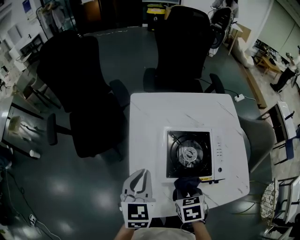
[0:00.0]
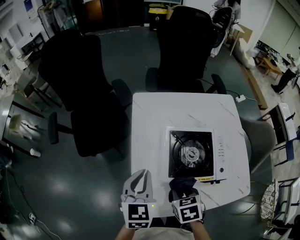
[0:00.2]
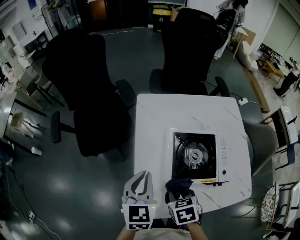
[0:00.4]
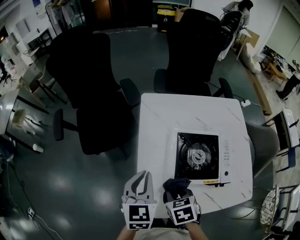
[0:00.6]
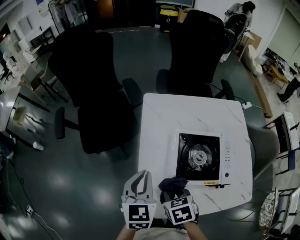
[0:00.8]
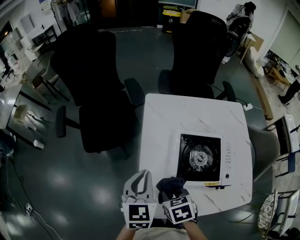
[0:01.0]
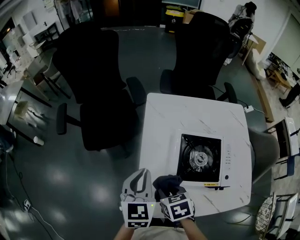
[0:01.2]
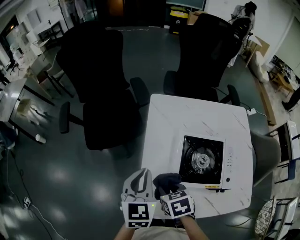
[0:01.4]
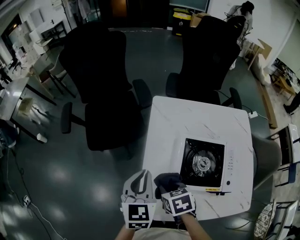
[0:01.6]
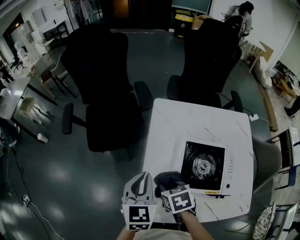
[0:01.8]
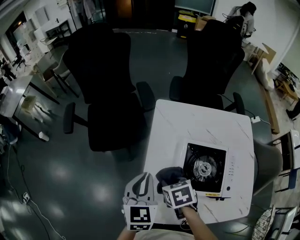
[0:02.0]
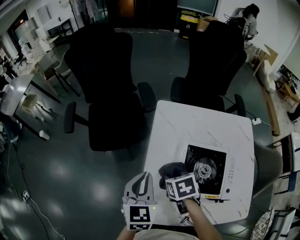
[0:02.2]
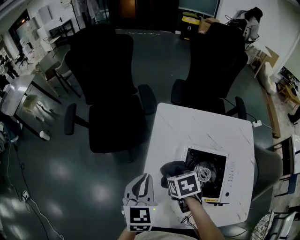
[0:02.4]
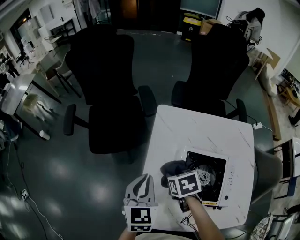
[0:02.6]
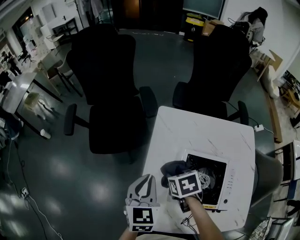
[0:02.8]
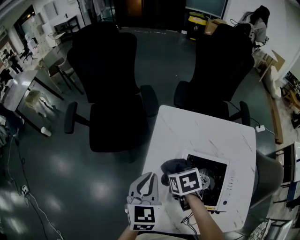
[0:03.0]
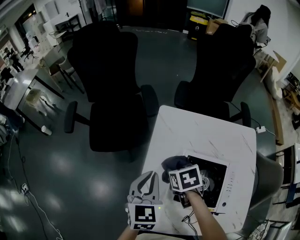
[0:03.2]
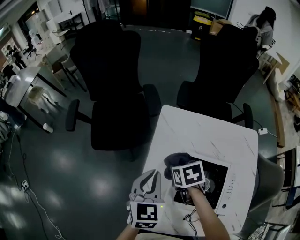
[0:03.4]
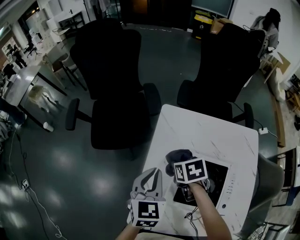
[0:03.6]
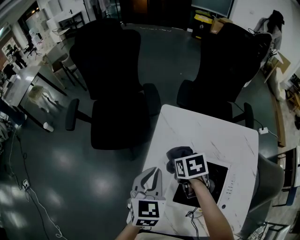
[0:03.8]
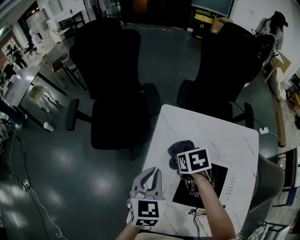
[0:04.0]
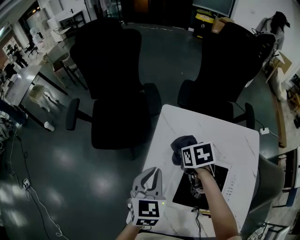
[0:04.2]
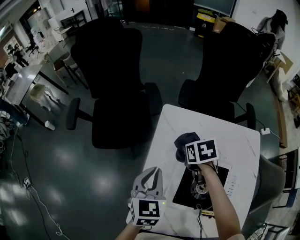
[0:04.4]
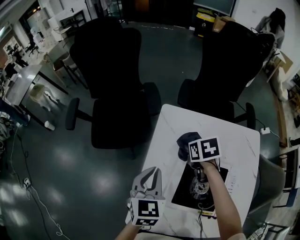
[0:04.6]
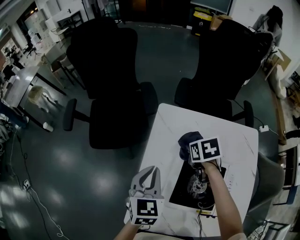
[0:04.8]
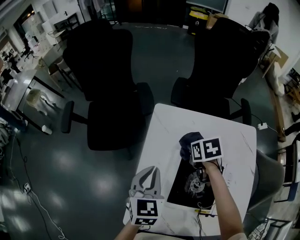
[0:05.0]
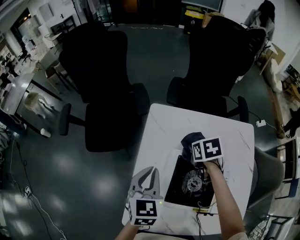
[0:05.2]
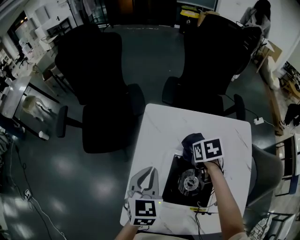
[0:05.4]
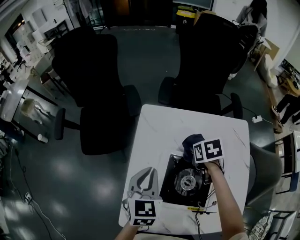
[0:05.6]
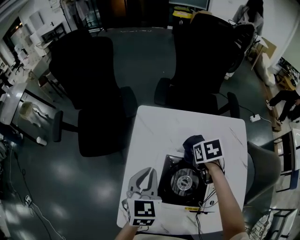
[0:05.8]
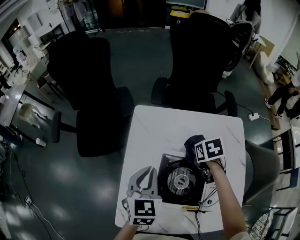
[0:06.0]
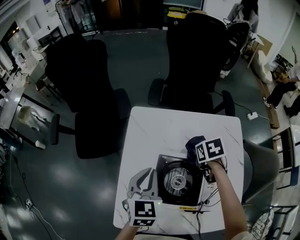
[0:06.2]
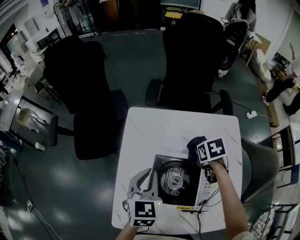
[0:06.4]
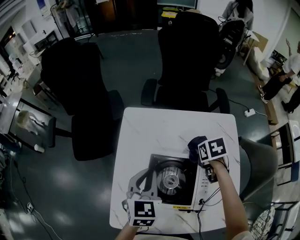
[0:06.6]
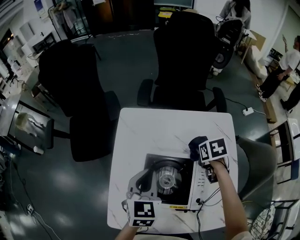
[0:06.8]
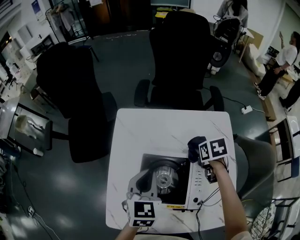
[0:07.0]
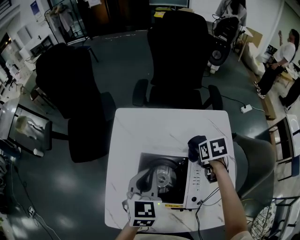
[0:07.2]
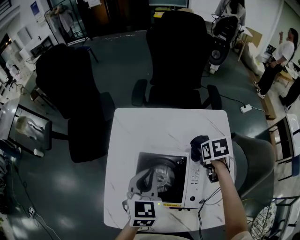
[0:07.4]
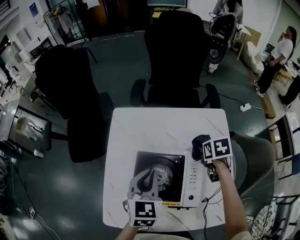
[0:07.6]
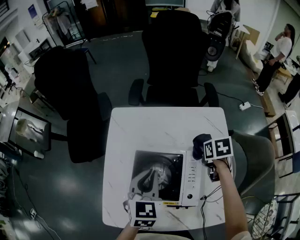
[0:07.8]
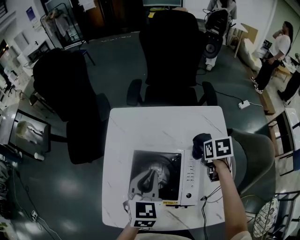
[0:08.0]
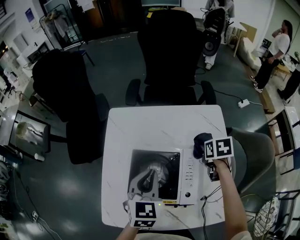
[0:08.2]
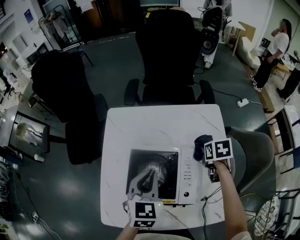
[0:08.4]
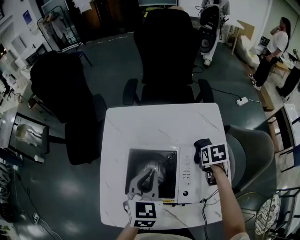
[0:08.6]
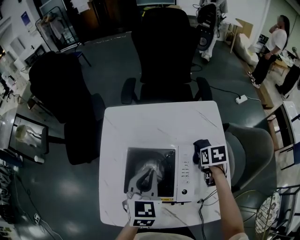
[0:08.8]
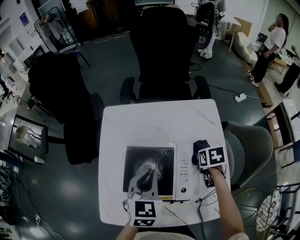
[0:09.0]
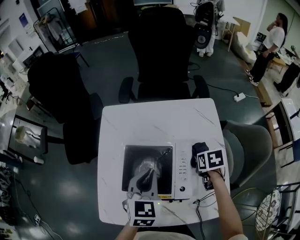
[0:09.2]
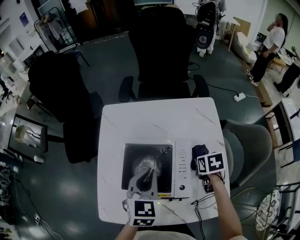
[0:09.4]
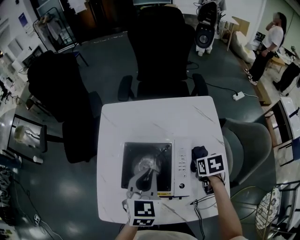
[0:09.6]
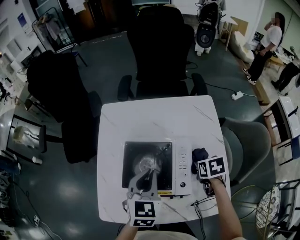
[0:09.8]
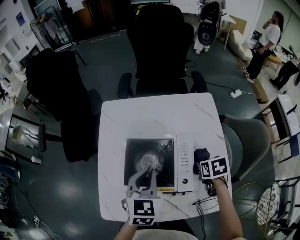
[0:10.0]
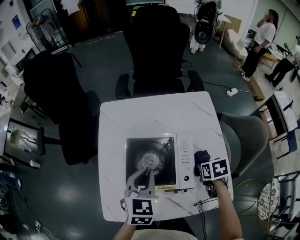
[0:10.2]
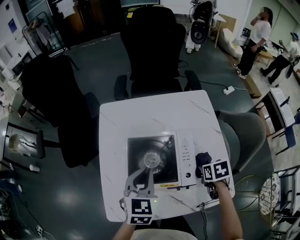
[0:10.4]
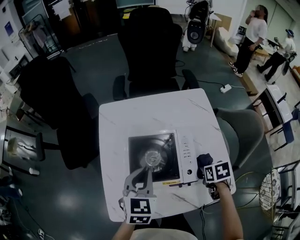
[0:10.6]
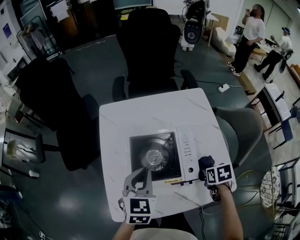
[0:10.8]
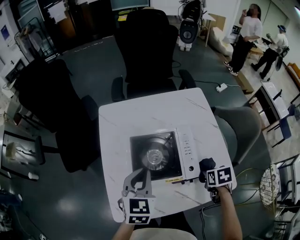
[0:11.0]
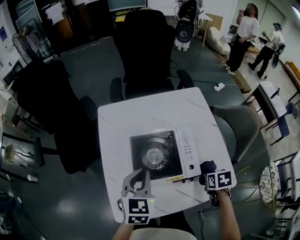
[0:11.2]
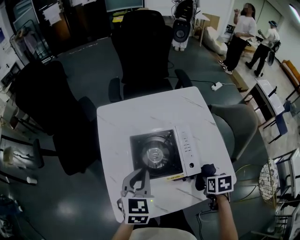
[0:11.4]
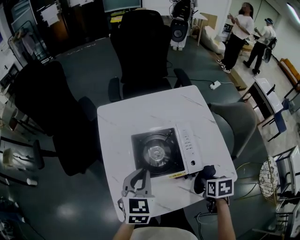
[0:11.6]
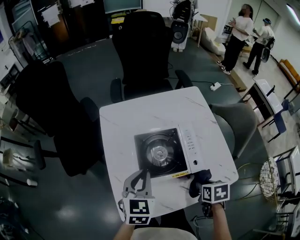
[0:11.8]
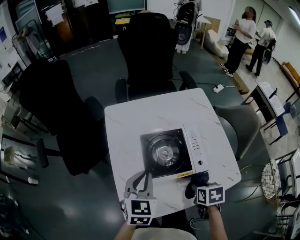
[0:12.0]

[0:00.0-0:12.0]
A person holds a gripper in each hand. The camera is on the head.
0:00.0 to 0:01.6: The right gripper goes about 15 cm to the left and forward, while the left gripper is displaced to the left by approximately 5 cm.
0:01.6 to 0:03.0: The left gripper shifts by some 5 cm, while the right gripper is displaced forward and to the right by some 15 cm.
0:03.0 to 0:04.4: The right gripper shifts about 15 cm forward and to the right.
0:04.4 to 0:06.0: The right gripper moves to the right, some 15 cm. Meanwhile the left gripper heads to the right, covering about 10 cm.
0:06.0 to 0:07.6: The two grippers go about 10 cm to the right.
0:07.6 to 0:09.0: The left gripper shifts by roughly 5 cm. Meanwhile the right gripper goes roughly 5 cm backward.
0:09.0 to 0:10.4: The right gripper travels backward by some 15 cm. Meanwhile the left gripper moves roughly 5 cm.
0:10.4 to 0:12.0: The left gripper moves to the left, about 10 cm. Meanwhile the right gripper moves backward and to the left, some 15 cm.

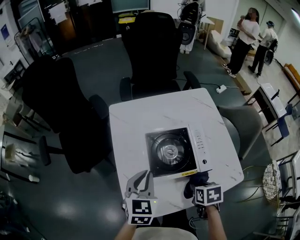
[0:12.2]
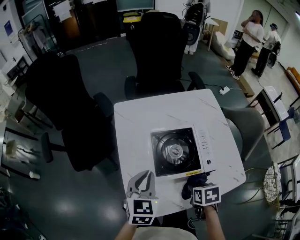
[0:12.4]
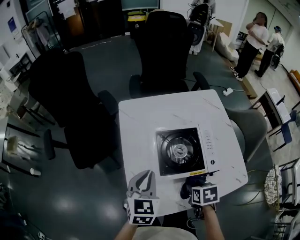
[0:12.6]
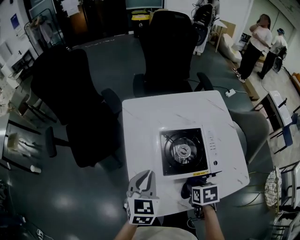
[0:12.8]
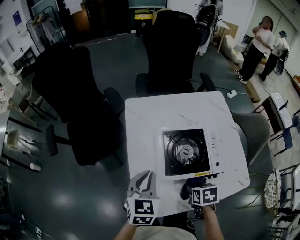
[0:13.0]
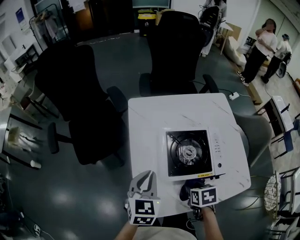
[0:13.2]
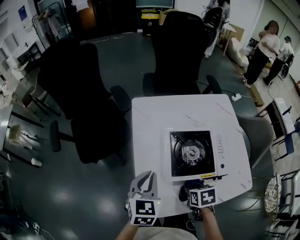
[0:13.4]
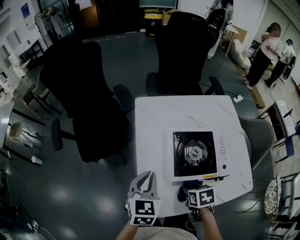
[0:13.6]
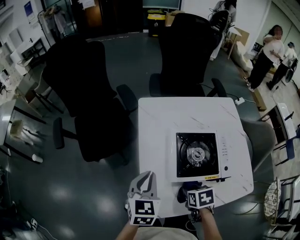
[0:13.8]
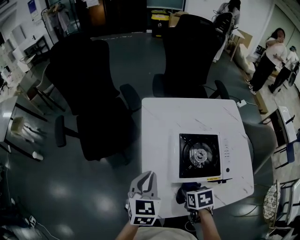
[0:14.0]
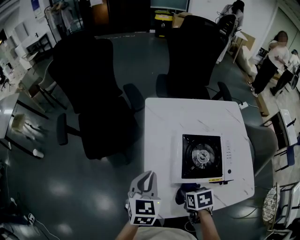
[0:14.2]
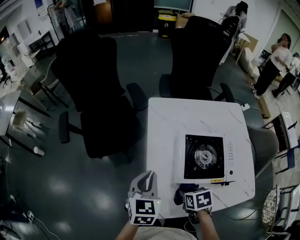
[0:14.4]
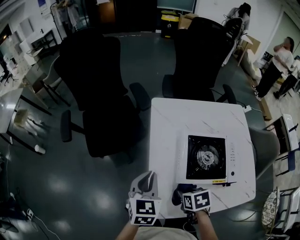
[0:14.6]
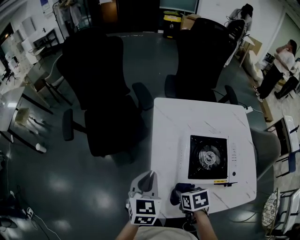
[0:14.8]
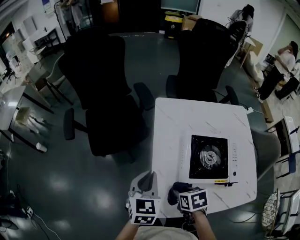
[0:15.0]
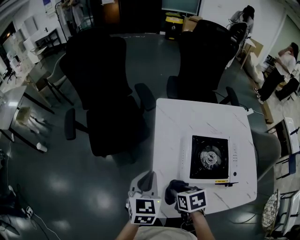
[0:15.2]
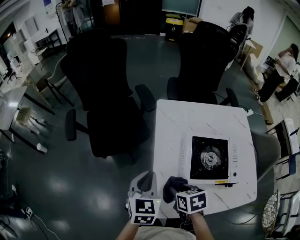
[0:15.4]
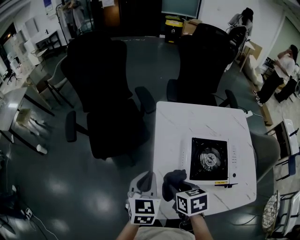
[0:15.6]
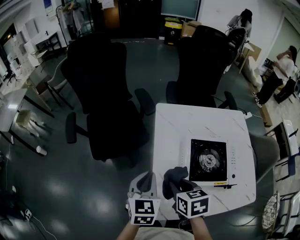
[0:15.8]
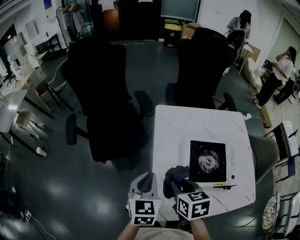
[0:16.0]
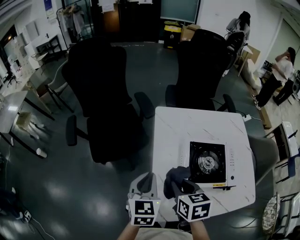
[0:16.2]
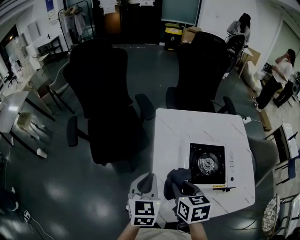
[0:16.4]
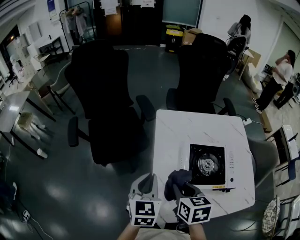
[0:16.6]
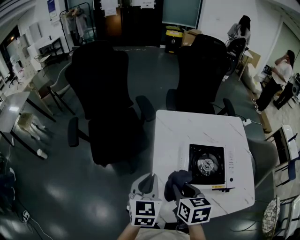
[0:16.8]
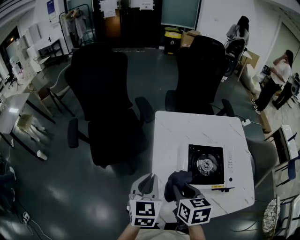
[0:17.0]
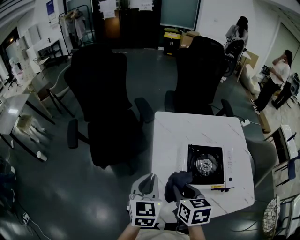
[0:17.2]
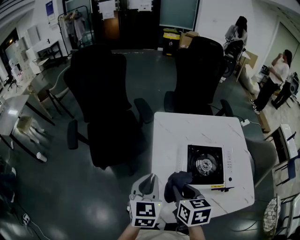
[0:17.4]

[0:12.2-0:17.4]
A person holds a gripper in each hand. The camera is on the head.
0:12.2 to 0:14.0: Both grippers move to the left, approximately 15 cm.
0:14.0 to 0:15.6: The left gripper moves to the left, roughly 5 cm. Meanwhile the right gripper travels to the left, upward and forward by roughly 15 cm.
0:15.6 to 0:17.4: The right gripper travels upward by approximately 5 cm.

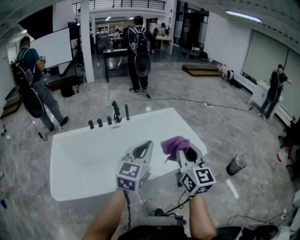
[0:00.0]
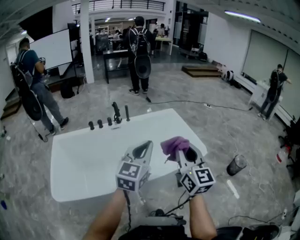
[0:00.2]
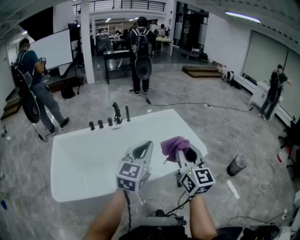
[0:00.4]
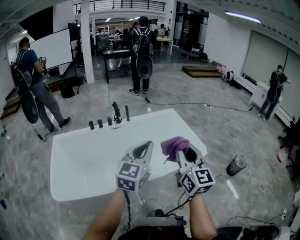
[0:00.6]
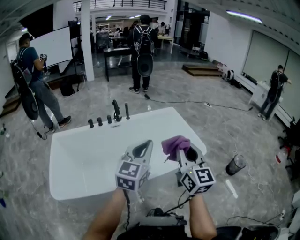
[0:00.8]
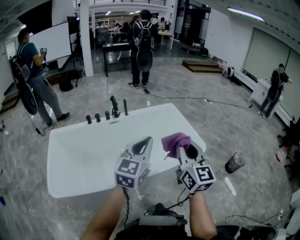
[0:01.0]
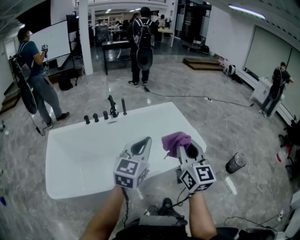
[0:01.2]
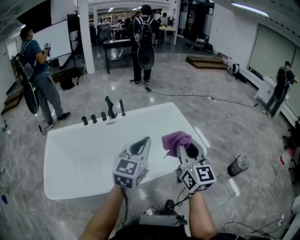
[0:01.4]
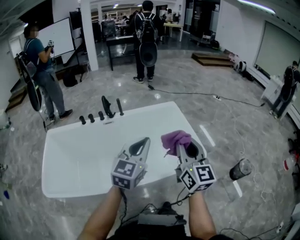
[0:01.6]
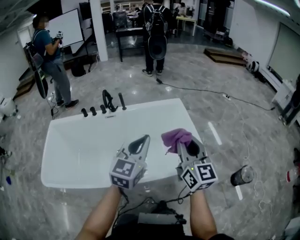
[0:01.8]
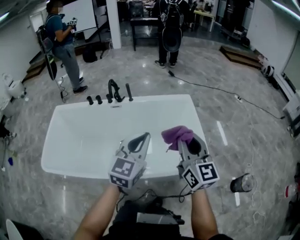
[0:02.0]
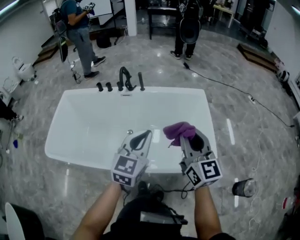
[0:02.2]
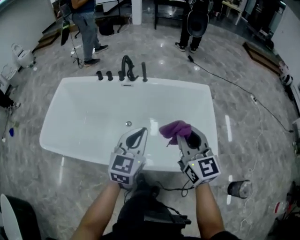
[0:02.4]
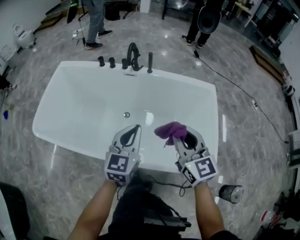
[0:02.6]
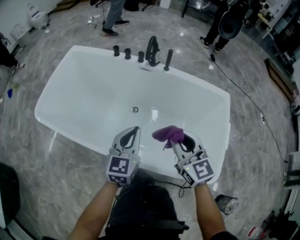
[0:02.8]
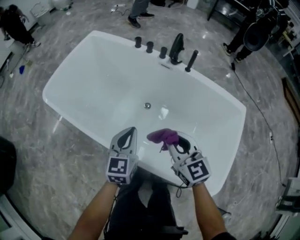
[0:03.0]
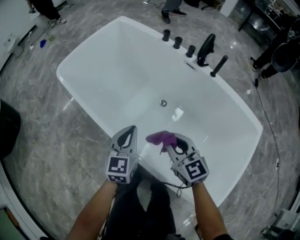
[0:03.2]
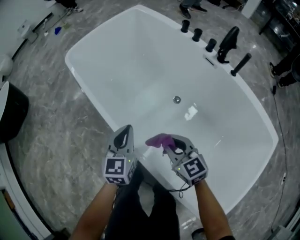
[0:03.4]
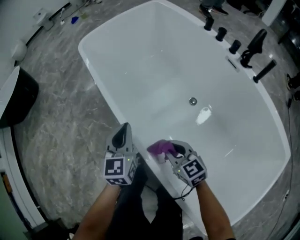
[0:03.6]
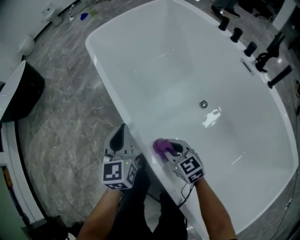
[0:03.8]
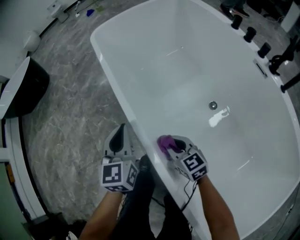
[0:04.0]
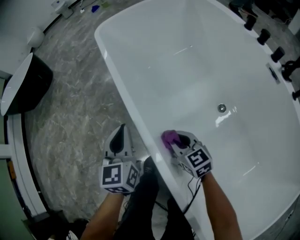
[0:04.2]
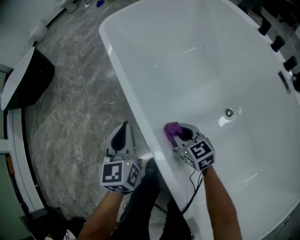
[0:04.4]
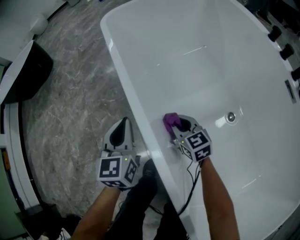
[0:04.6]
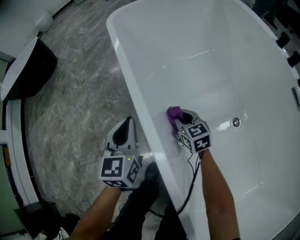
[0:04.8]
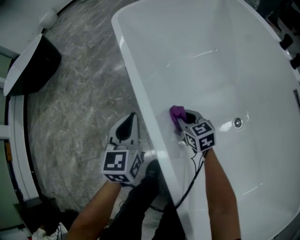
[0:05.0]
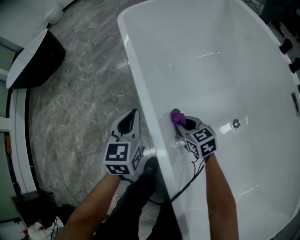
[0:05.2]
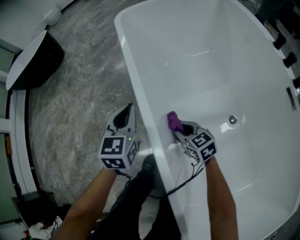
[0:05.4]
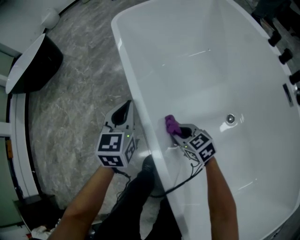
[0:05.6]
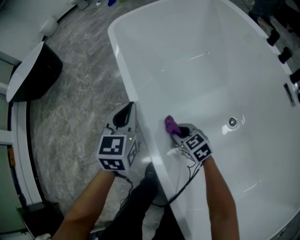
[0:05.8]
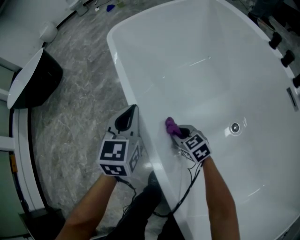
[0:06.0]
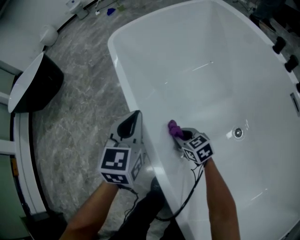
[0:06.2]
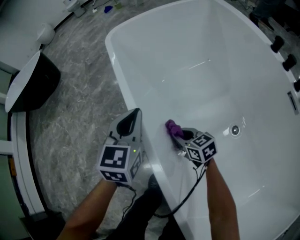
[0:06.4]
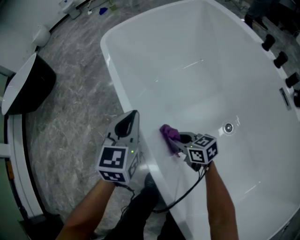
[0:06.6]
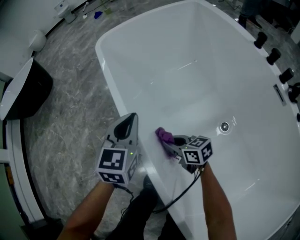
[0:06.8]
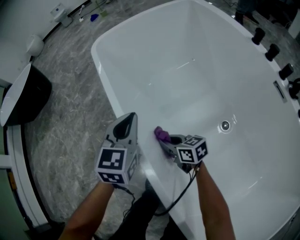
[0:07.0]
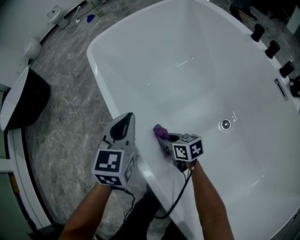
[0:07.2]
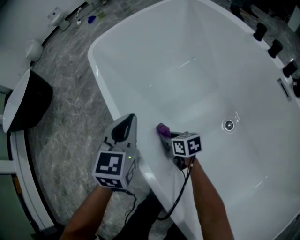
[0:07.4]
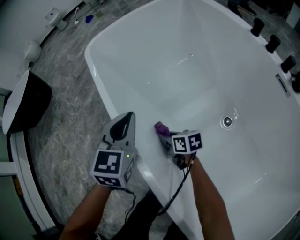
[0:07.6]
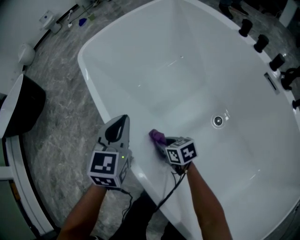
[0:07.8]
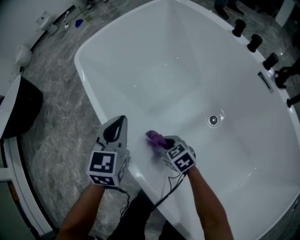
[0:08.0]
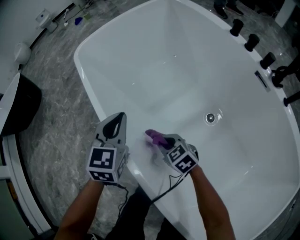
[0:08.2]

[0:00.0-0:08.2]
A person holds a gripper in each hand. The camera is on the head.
0:00.0 to 0:01.6: The two grippers go approximately 15 cm forward and to the right.
0:01.6 to 0:03.2: The two grippers go some 30 cm downward. The left gripper rotates approximately 70 degrees, while the right gripper changes its angle by about 80 degrees.
0:03.2 to 0:05.0: The left gripper shifts by about 35 cm, and changes its angle by approximately 40 degrees, while the right gripper moves downward, roughly 40 cm, and changes its angle by roughly 40 degrees.
0:05.0 to 0:06.6: The left gripper goes roughly 10 cm to the right and upward. Meanwhile the right gripper goes forward and backward, about 10 cm each way, reversing 2 times, and swivels some 20 degrees.
0:06.6 to 0:08.2: The left gripper shifts roughly 5 cm to the right. The right gripper moves some 5 cm, and swivels some 30 degrees.
